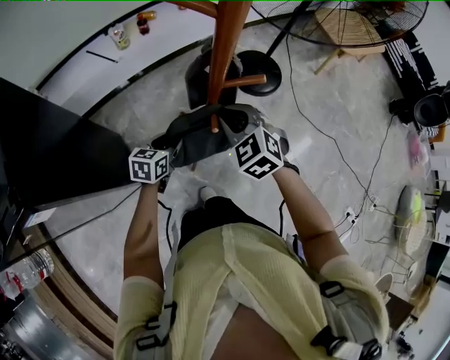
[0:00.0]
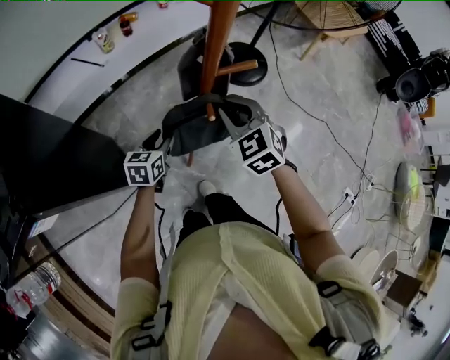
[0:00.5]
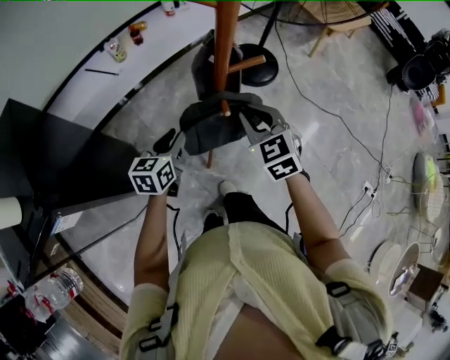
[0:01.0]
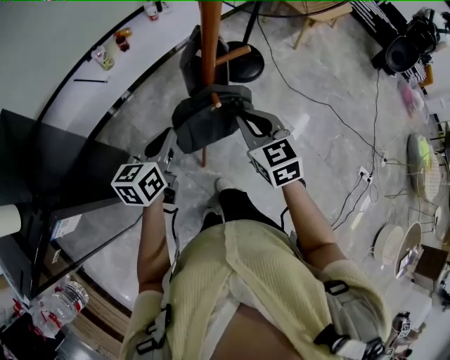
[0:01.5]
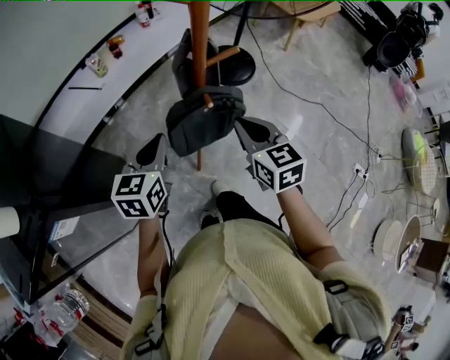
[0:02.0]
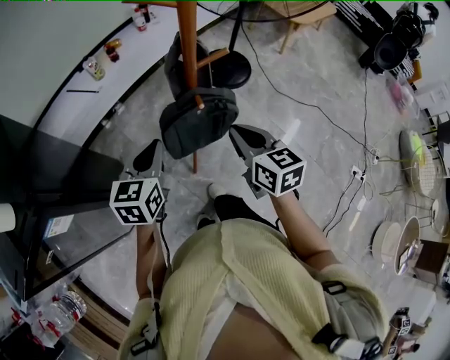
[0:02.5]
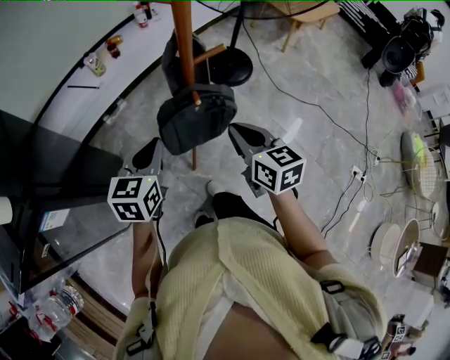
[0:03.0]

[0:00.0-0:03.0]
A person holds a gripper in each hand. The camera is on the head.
0:00.0 to 0:01.5: The left gripper moves upward, roughly 15 cm, and closes. Meanwhile the right gripper is displaced backward and upward by some 10 cm, and swivels some 40 degrees.
0:01.5 to 0:03.0: The right gripper ends up some 5 cm from where it was, and swivels approximately 20 degrees, while the left gripper shifts by about 5 cm.

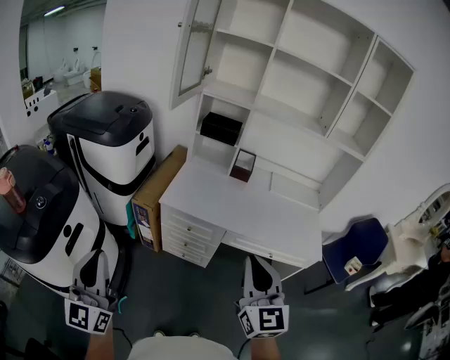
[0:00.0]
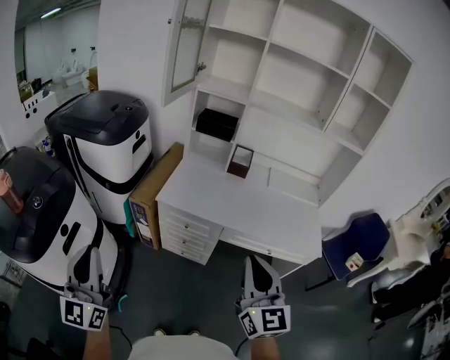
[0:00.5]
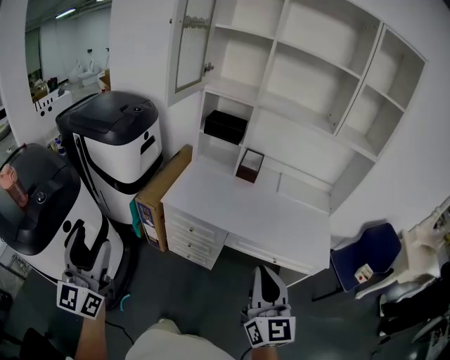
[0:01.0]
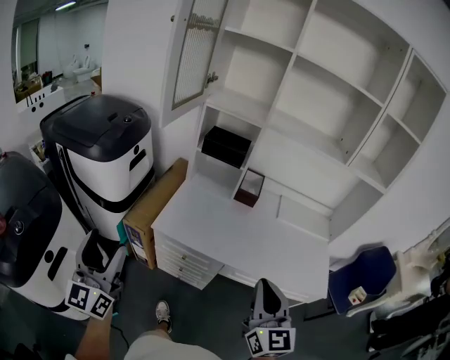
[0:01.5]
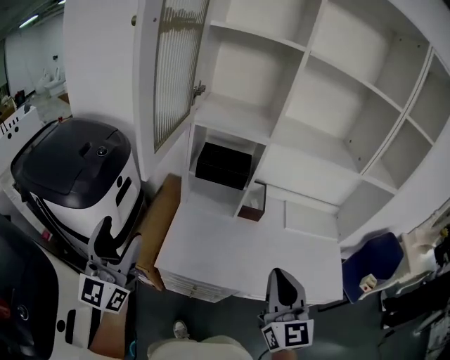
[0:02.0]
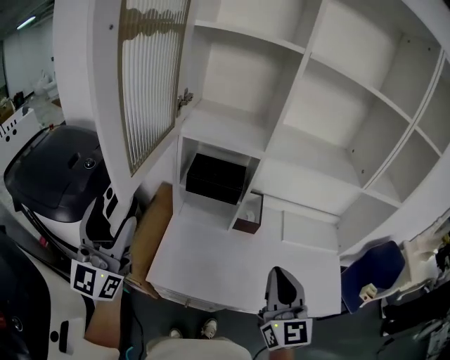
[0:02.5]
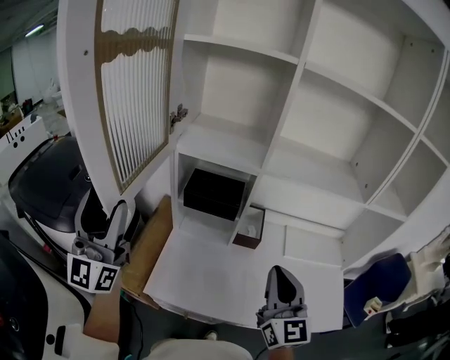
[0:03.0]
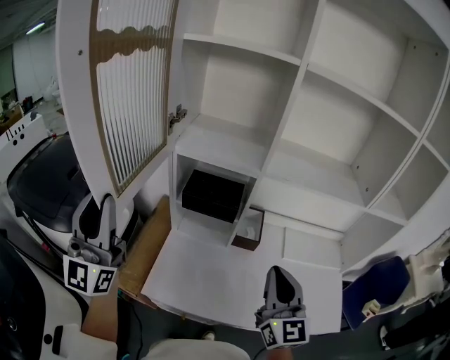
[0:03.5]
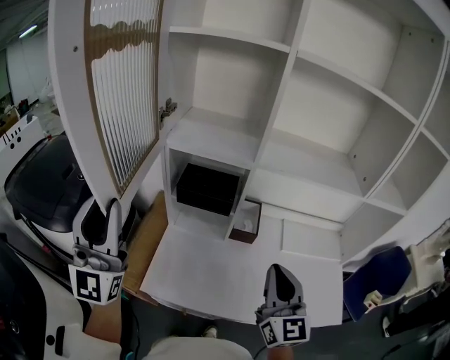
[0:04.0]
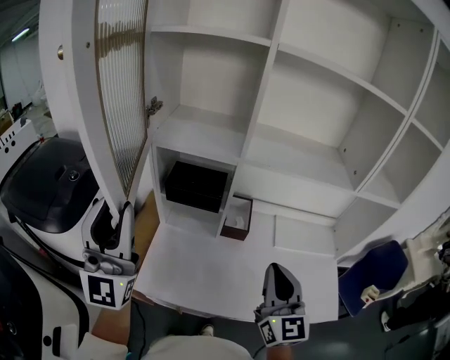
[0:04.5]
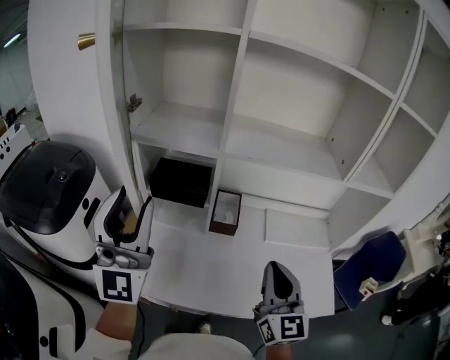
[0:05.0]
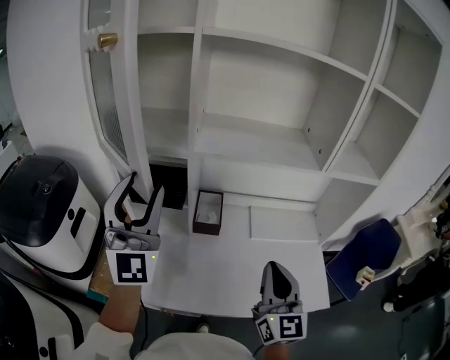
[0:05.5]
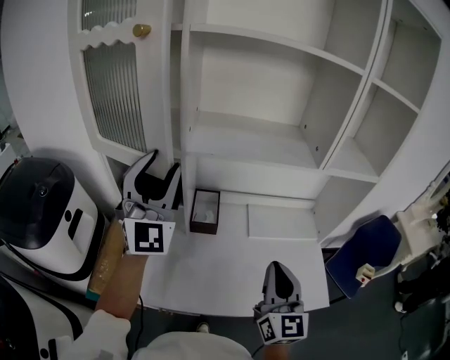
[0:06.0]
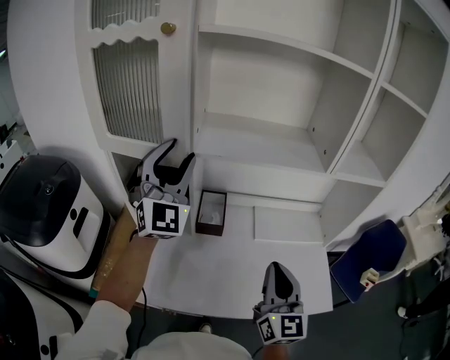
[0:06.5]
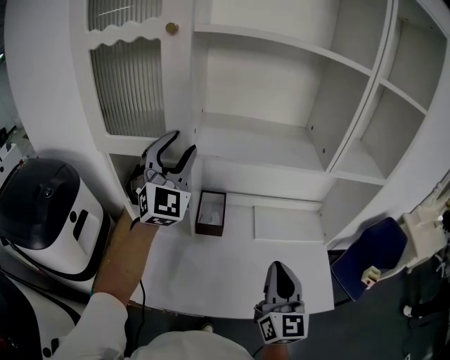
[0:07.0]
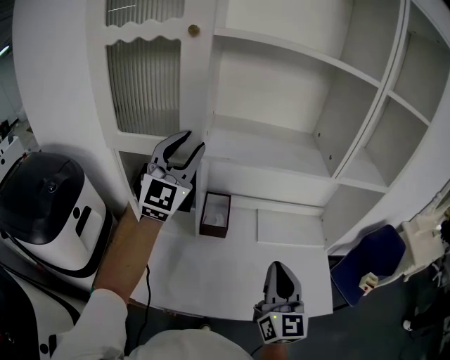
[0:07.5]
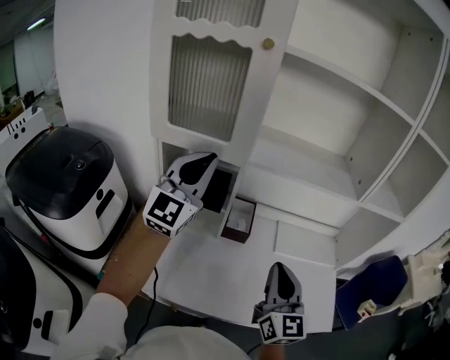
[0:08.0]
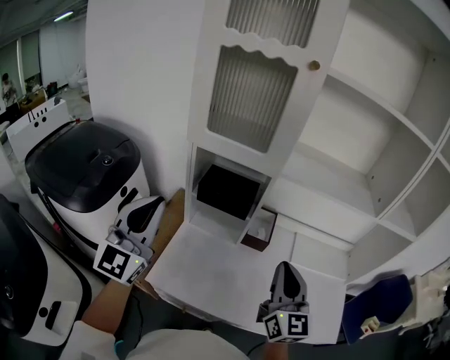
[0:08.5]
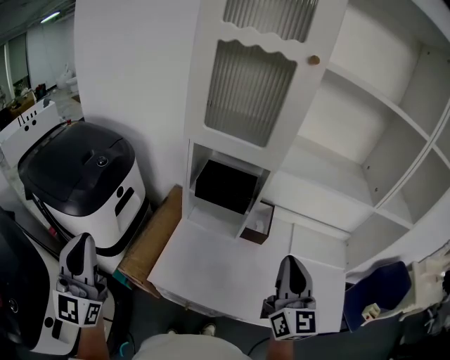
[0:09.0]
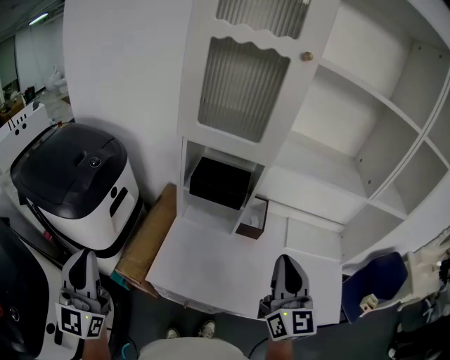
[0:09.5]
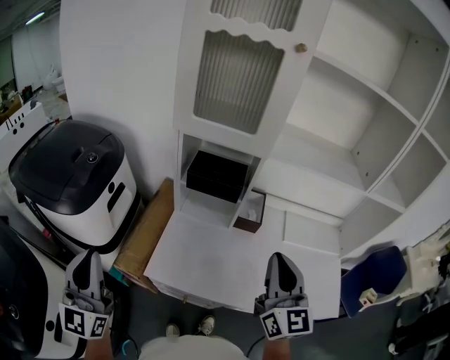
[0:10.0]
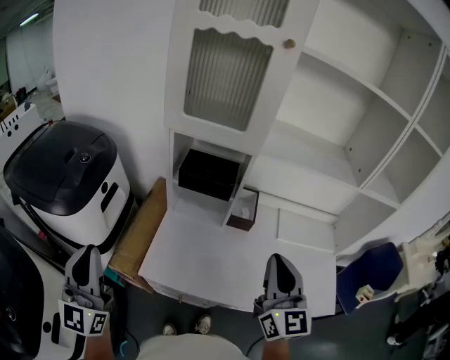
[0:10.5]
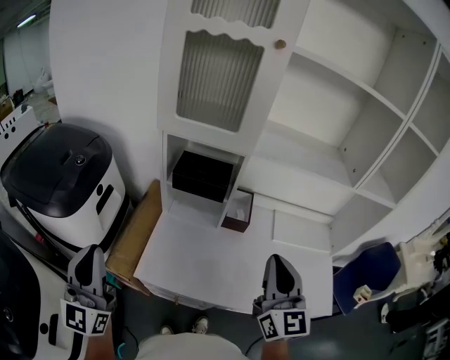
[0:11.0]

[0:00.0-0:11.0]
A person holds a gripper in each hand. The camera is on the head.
0:00.0 to 0:02.0: Both grippers travel together forward, approximately 40 cm. The left gripper opens.
0:02.0 to 0:03.5: The right gripper goes roughly 15 cm forward. Meanwhile the left gripper moves forward and upward, about 15 cm, and closes its fingers.
0:03.5 to 0:05.5: The left gripper travels to the right by about 25 cm, and rotates some 30 degrees; the right gripper moves to the right, roughly 15 cm.
0:05.5 to 0:07.5: The left gripper is displaced forward by roughly 15 cm.
0:07.5 to 0:09.0: The right gripper is displaced to the left by about 15 cm, while the left gripper heads backward and to the left, covering roughly 50 cm, rotates about 30 degrees, and closes up.
0:09.0 to 0:11.0: The left gripper moves to the right, approximately 5 cm.

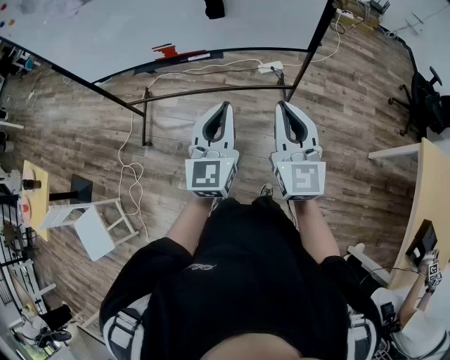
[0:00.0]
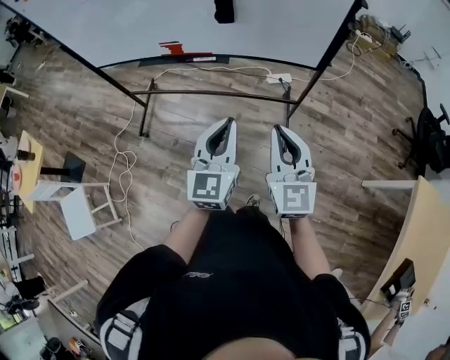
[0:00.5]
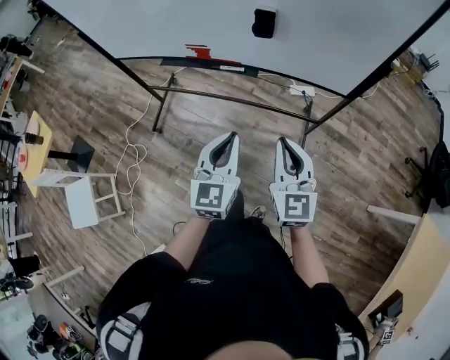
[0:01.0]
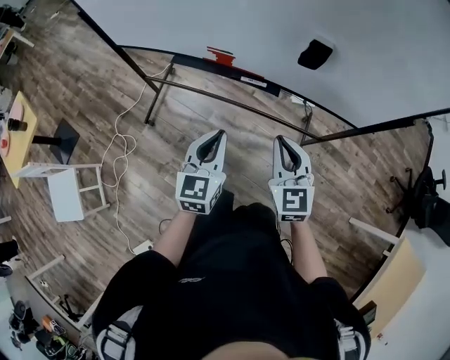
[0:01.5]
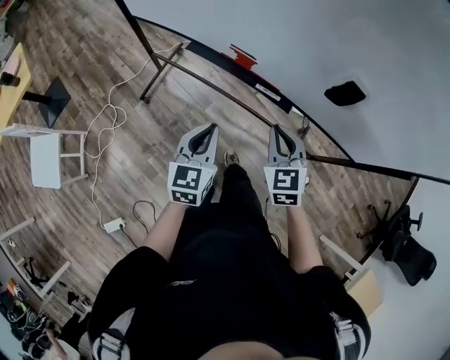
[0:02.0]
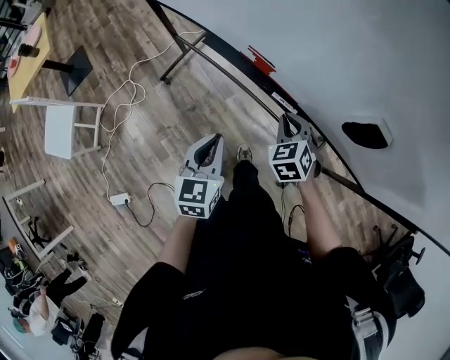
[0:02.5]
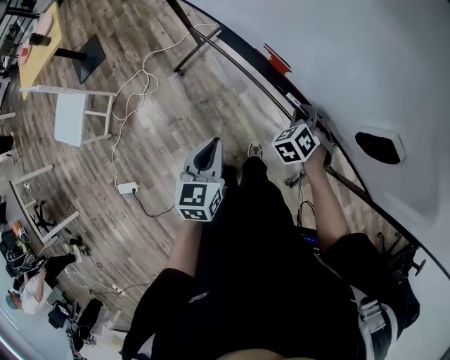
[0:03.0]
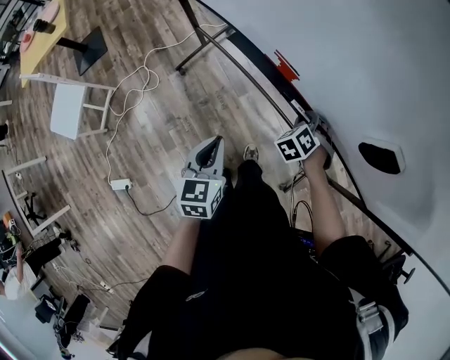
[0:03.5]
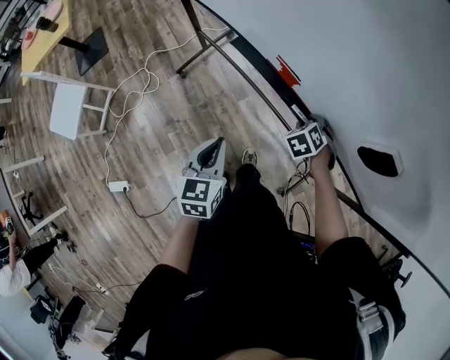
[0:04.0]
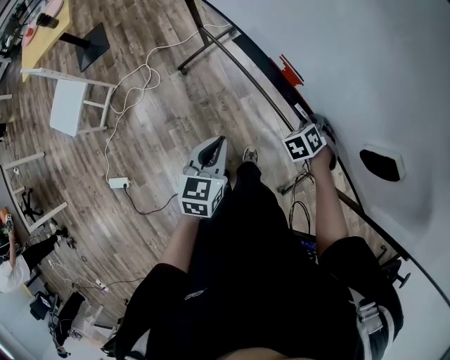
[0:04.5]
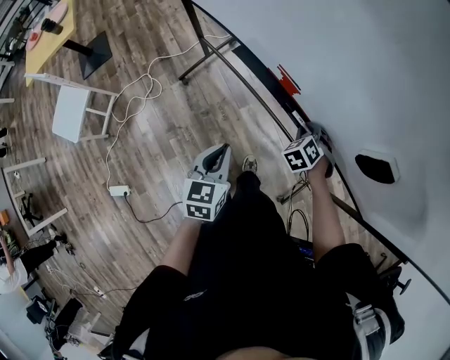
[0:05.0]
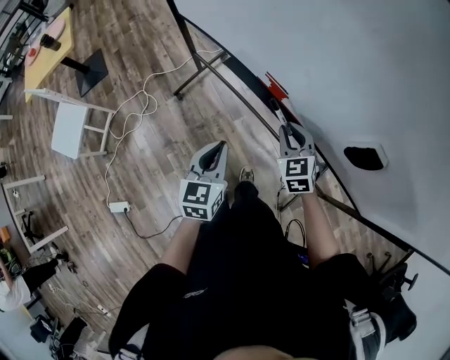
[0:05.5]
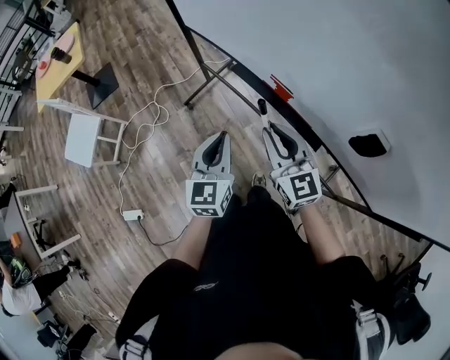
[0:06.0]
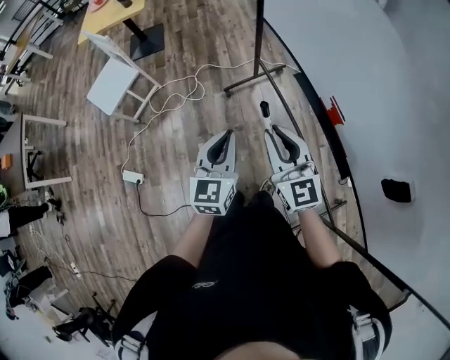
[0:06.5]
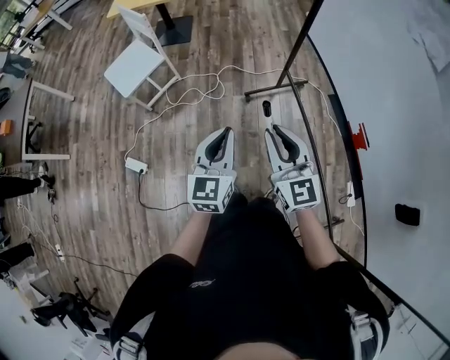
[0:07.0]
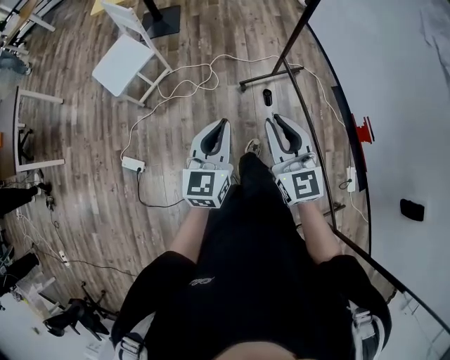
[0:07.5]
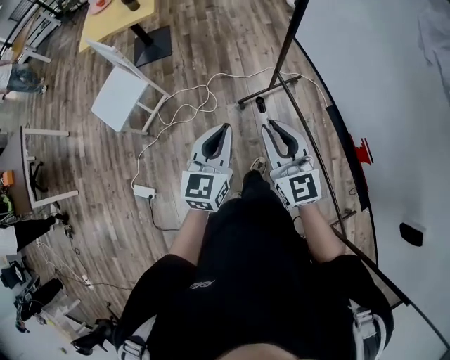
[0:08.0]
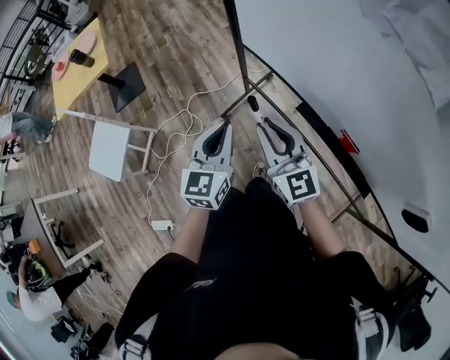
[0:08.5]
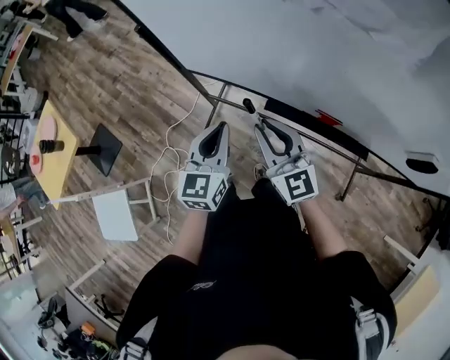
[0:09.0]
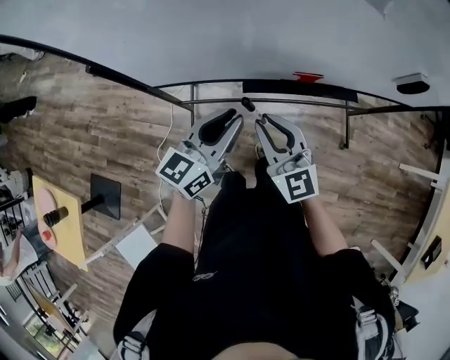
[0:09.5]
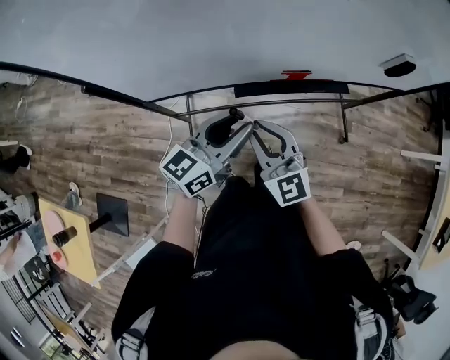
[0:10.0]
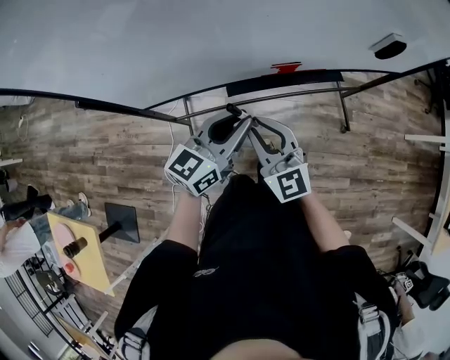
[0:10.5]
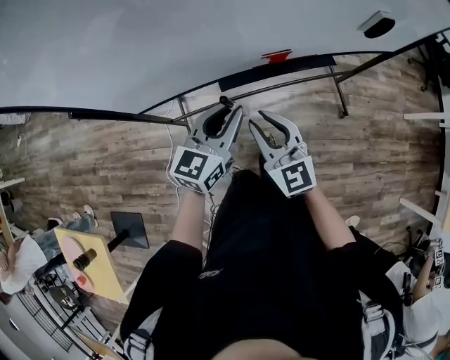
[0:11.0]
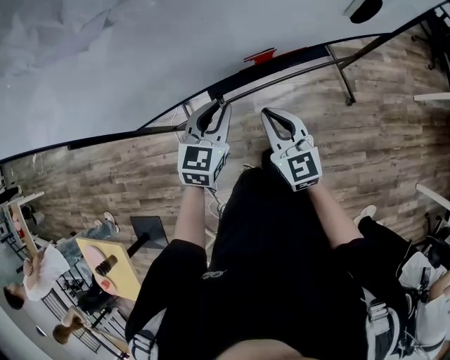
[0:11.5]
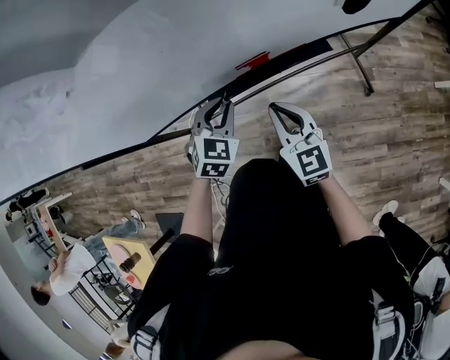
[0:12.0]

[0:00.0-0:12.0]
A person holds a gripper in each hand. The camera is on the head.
0:00.0 to 0:02.0: The grippers both shift forward, to the left and downward by about 40 cm. The right gripper angles its fingers downward, by about 30 degrees, while the left gripper changes its angle by about 30 degrees.
0:02.0 to 0:04.0: The left gripper shifts by roughly 5 cm, and rotates approximately 20 degrees; the right gripper travels downward and forward by roughly 25 cm, tilts its fingers roughly 40 degrees downward, and opens its fingers.
0:04.0 to 0:06.0: The left gripper is displaced upward by some 10 cm. The right gripper heads upward, covering about 25 cm, and tips its fingers upward by roughly 60 degrees.
0:06.0 to 0:08.0: The left gripper ends up some 30 cm from where it was, while the right gripper ends up about 35 cm from where it was, and turns by some 20 degrees.
0:08.0 to 0:10.0: The right gripper shifts by some 20 cm, and changes its angle by roughly 60 degrees; the left gripper changes place by some 30 cm, rotates some 100 degrees, and opens.
0:10.0 to 0:12.0: The right gripper shifts roughly 20 cm to the right, forward and downward, and swivels about 30 degrees. Meanwhile the left gripper goes some 20 cm downward, forward and to the right, and tilts its fingers roughly 40 degrees downward.
